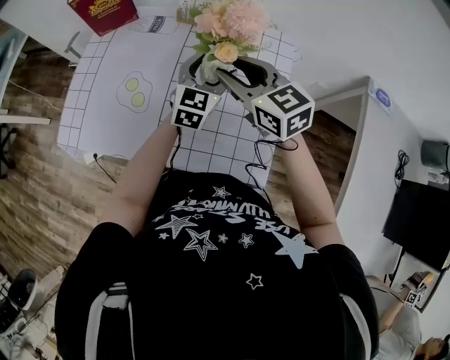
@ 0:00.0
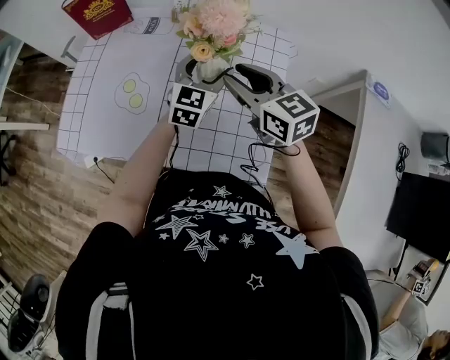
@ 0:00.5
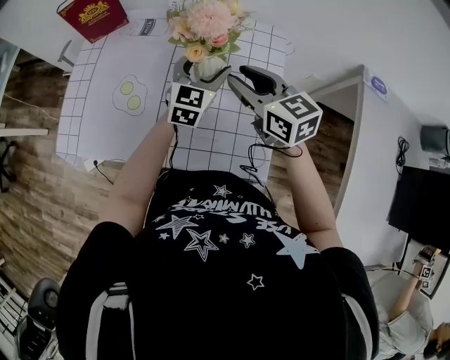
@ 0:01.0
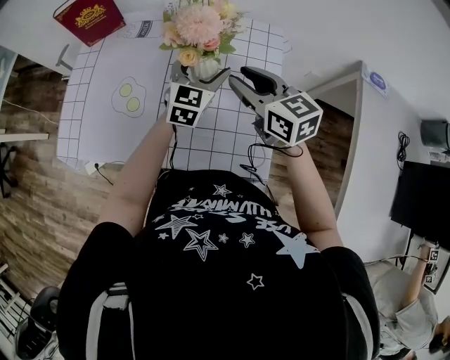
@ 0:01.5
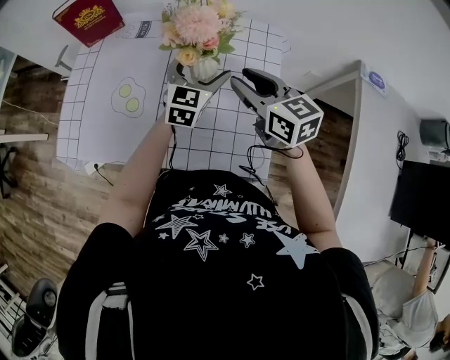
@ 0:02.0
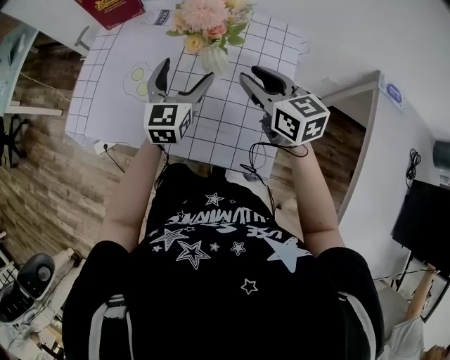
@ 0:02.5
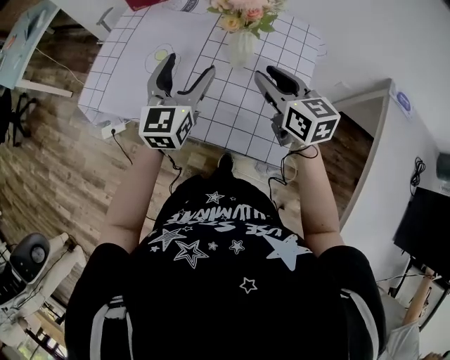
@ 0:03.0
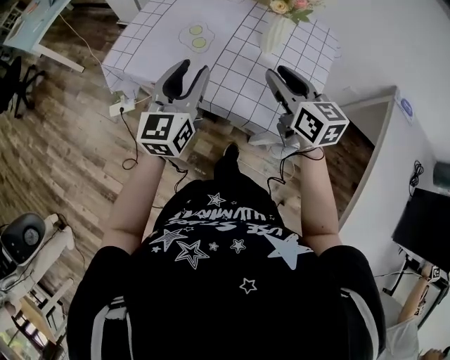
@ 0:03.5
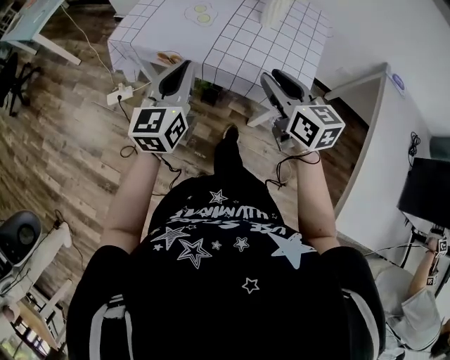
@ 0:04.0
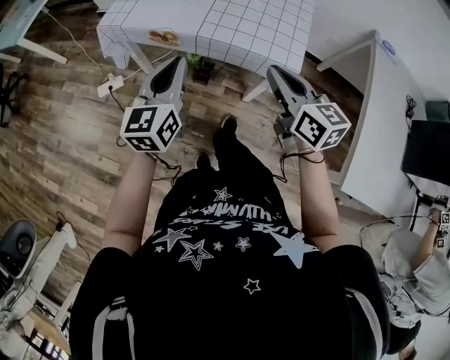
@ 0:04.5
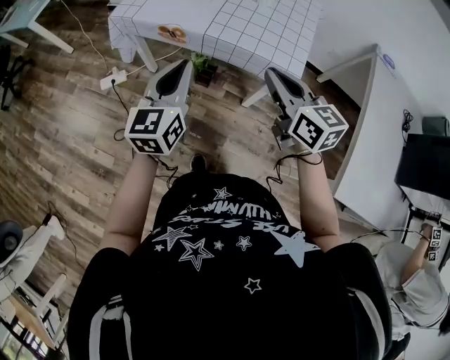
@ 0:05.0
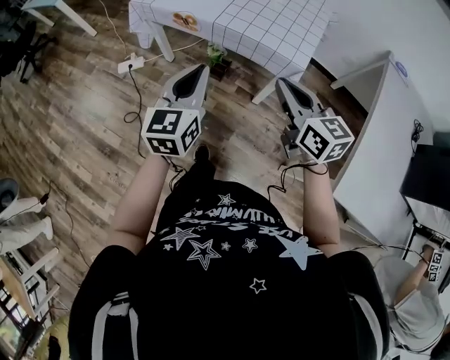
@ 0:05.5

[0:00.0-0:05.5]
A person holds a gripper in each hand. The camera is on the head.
0:00.0 to 0:02.0: The right gripper travels to the right by roughly 5 cm.
0:02.0 to 0:03.5: The left gripper goes about 30 cm to the left and backward, changes its angle by roughly 30 degrees, and closes up. The right gripper is displaced backward and to the left by roughly 15 cm.
0:03.5 to 0:05.5: Both grippers move backward, some 35 cm. The right gripper closes up.

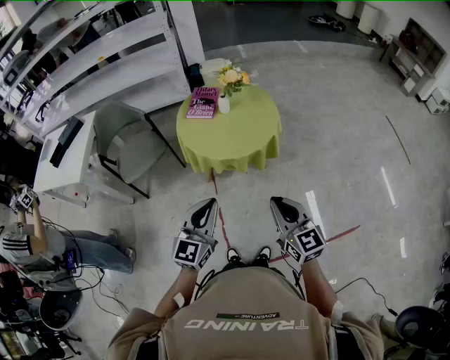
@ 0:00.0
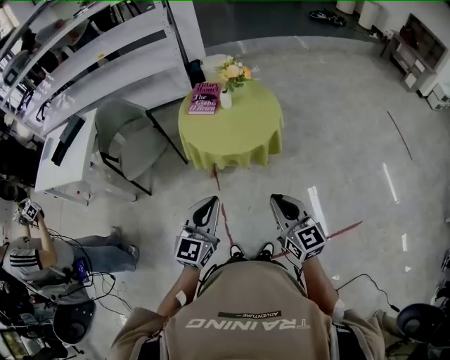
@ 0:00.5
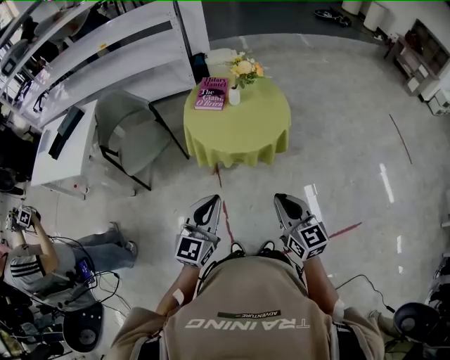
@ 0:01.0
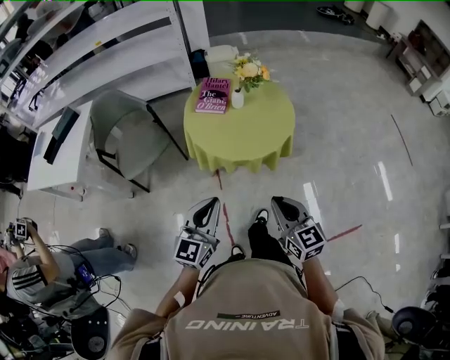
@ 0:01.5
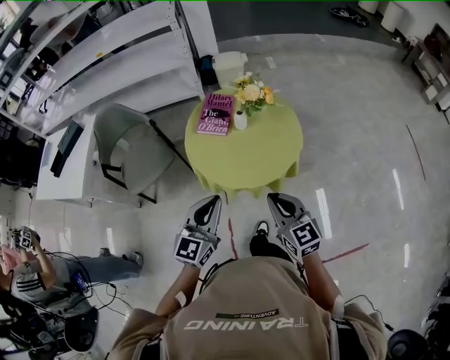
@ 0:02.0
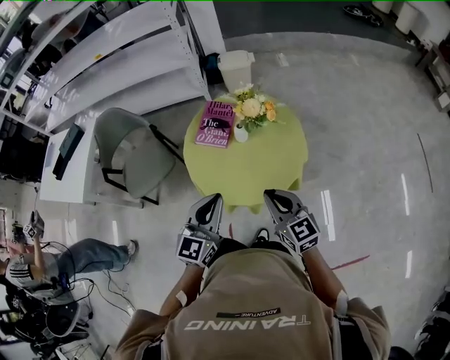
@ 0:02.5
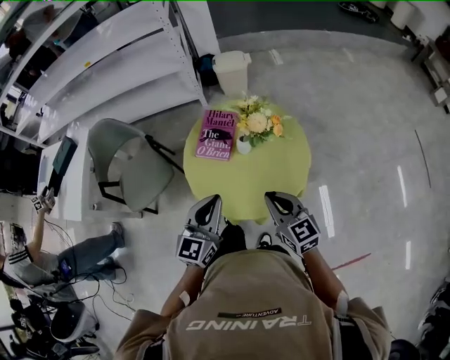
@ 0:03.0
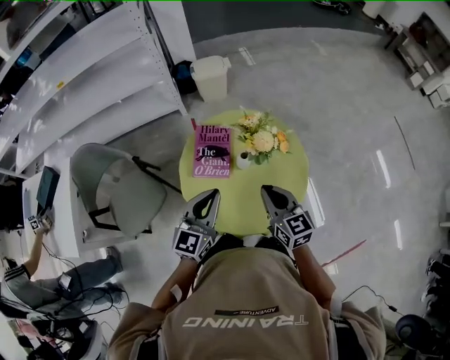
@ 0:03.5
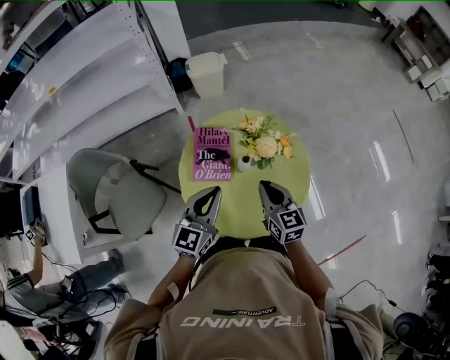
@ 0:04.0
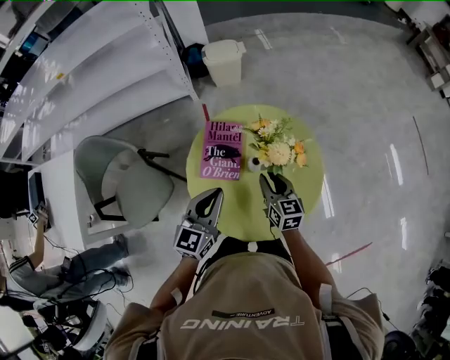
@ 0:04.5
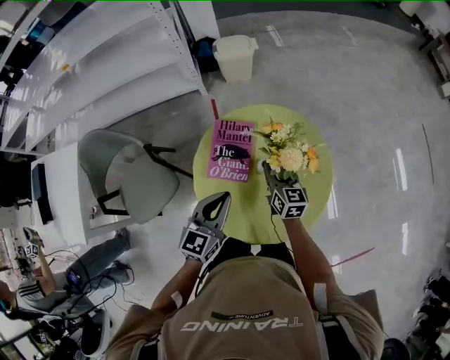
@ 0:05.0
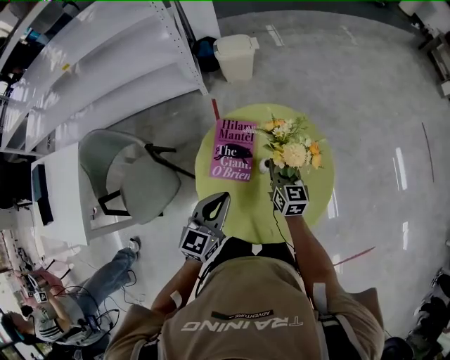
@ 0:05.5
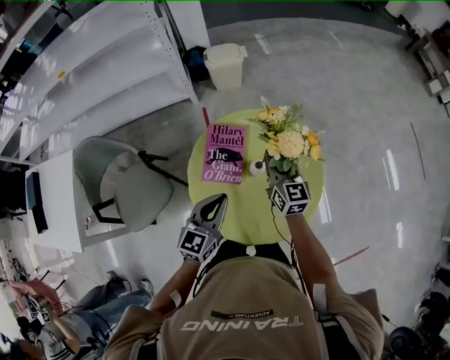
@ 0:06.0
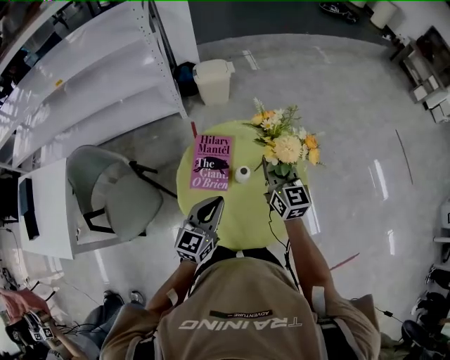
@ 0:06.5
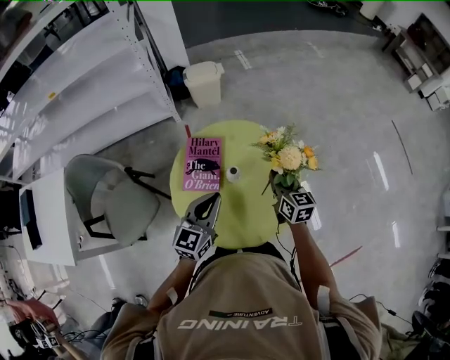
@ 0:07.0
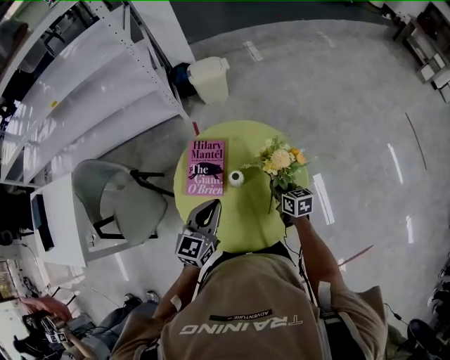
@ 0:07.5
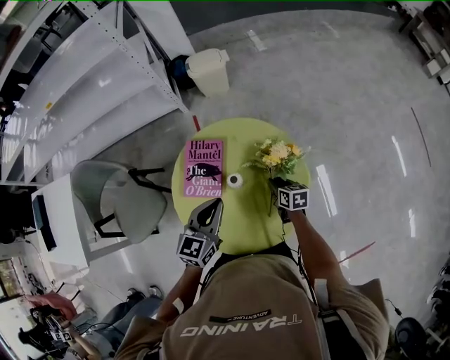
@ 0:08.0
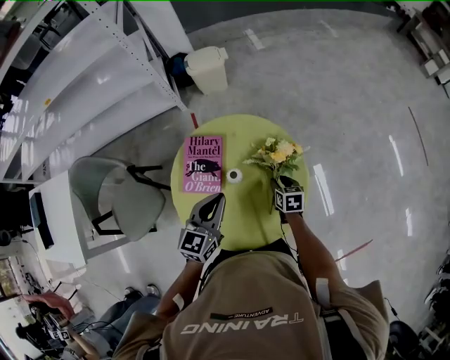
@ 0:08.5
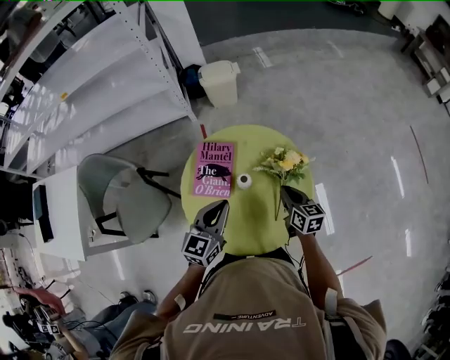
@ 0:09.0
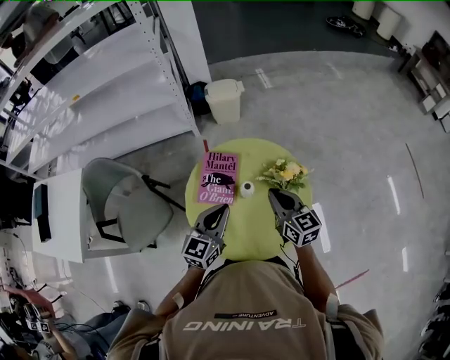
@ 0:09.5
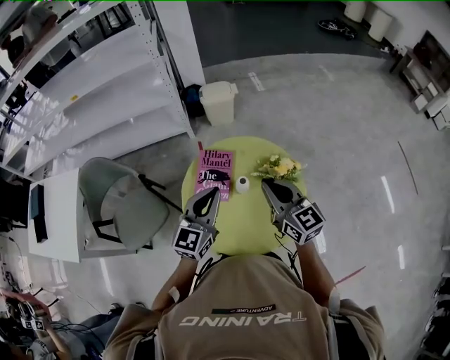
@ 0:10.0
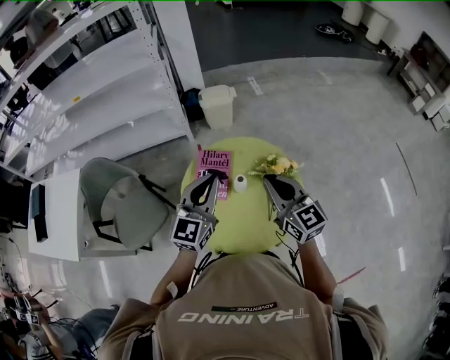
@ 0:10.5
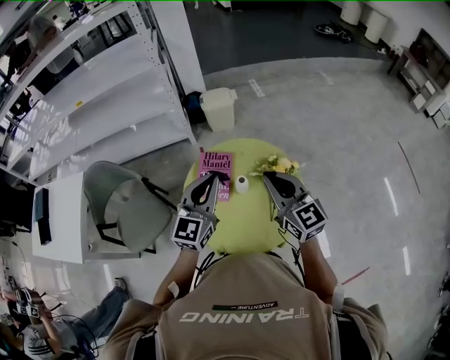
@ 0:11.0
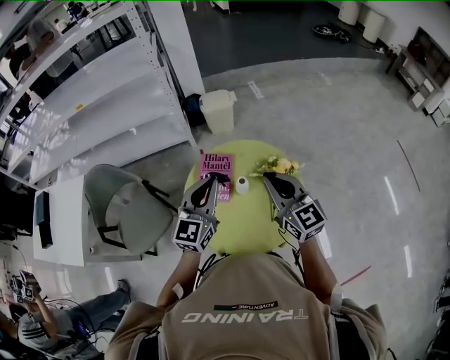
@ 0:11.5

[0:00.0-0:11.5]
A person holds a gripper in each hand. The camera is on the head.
0:00.0 to 0:02.0: The two grippers go roughly 25 cm forward.
0:02.0 to 0:04.0: Both grippers move forward, roughly 30 cm. The right gripper rotates about 20 degrees.
0:04.0 to 0:06.0: The right gripper moves forward, roughly 15 cm, and opens and closes again; the left gripper shifts some 5 cm downward.
0:06.0 to 0:07.5: The left gripper is displaced to the right by roughly 5 cm. Meanwhile the right gripper is displaced downward and to the right by some 20 cm, and swivels some 30 degrees.
0:07.5 to 0:09.5: The right gripper is displaced upward by roughly 20 cm, changes its angle by some 30 degrees, and opens, then closes once more.
0:09.5 to 0:11.5: Both grippers move upward, approximately 15 cm.

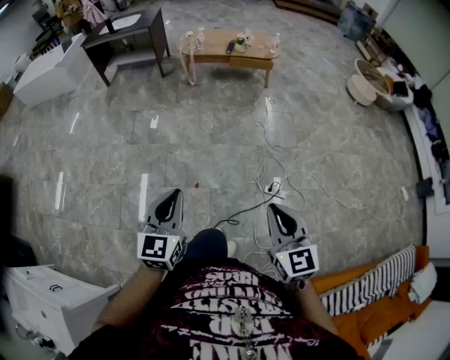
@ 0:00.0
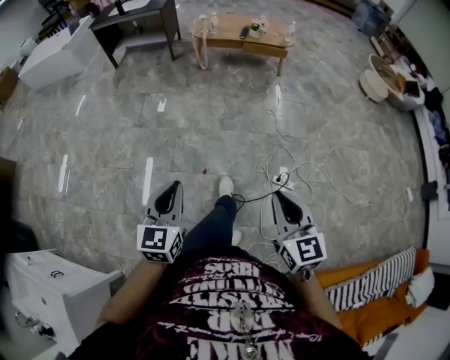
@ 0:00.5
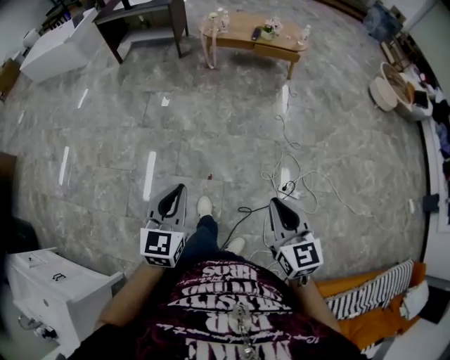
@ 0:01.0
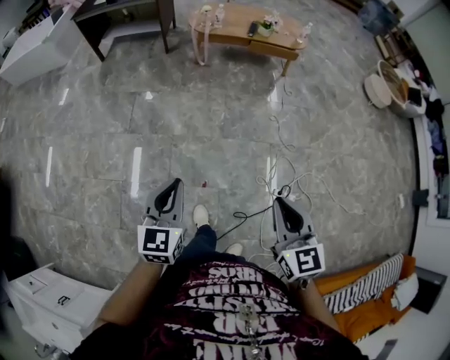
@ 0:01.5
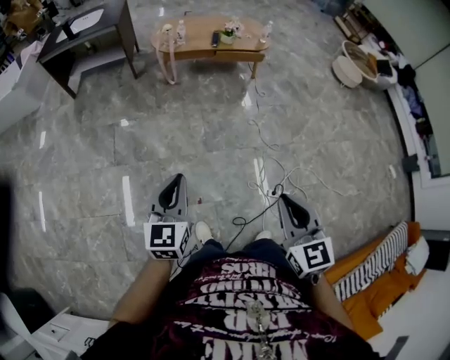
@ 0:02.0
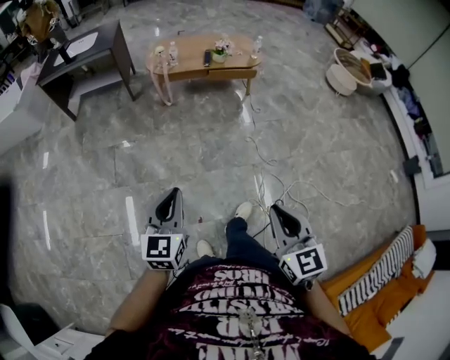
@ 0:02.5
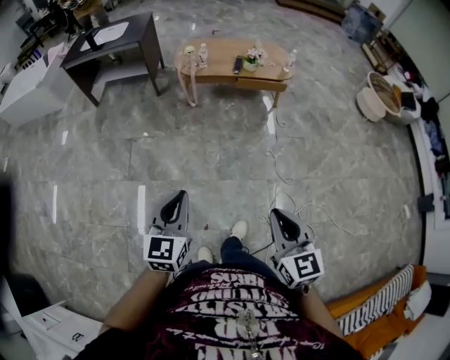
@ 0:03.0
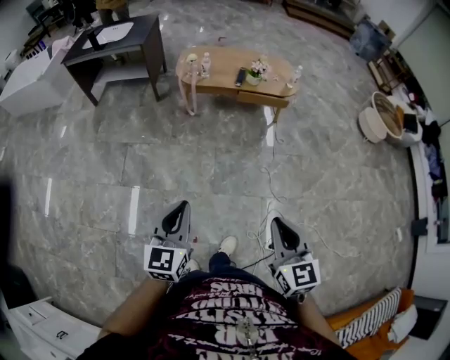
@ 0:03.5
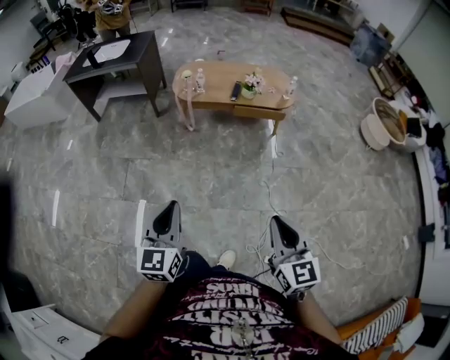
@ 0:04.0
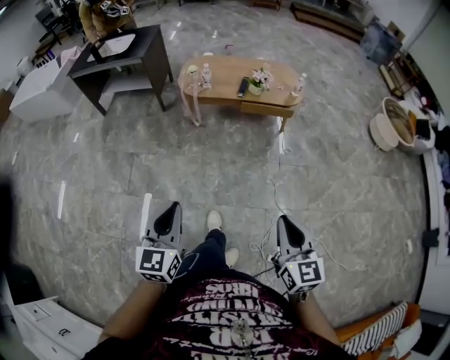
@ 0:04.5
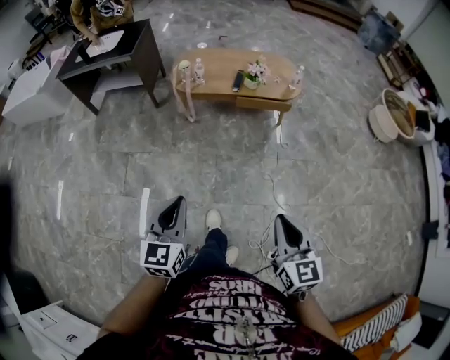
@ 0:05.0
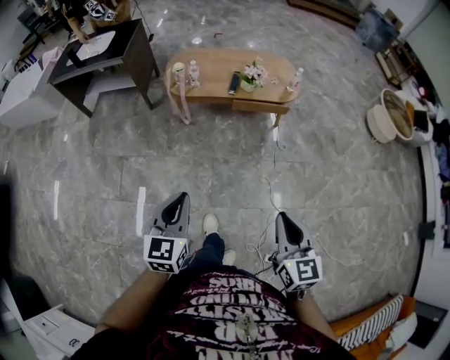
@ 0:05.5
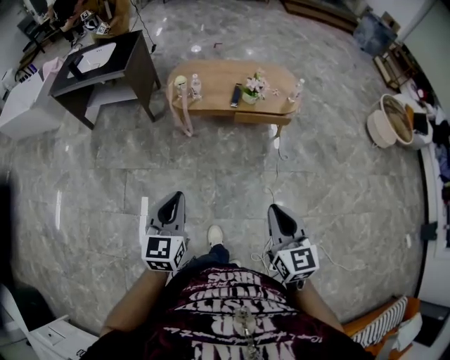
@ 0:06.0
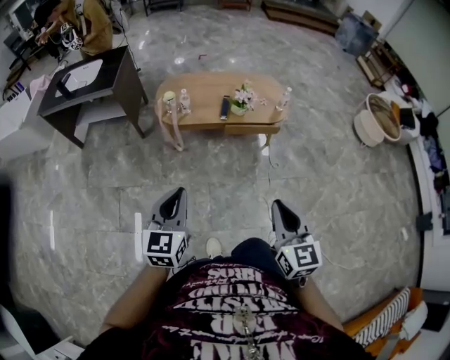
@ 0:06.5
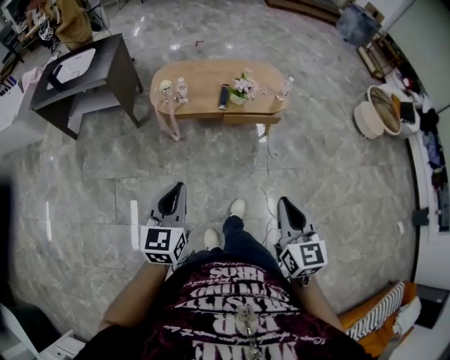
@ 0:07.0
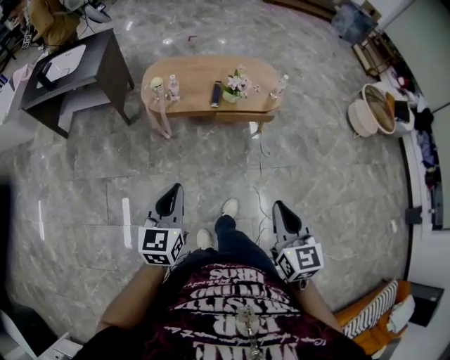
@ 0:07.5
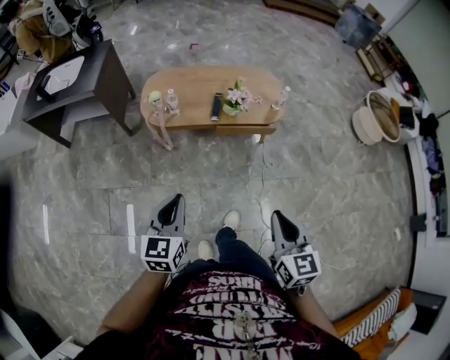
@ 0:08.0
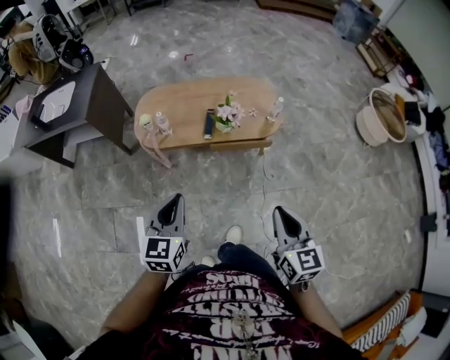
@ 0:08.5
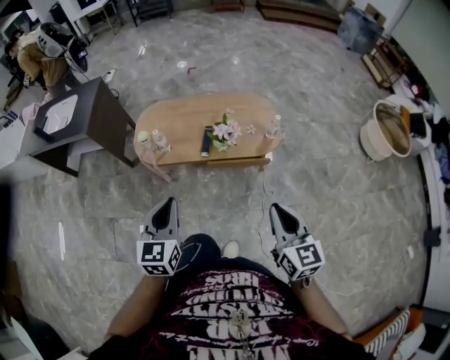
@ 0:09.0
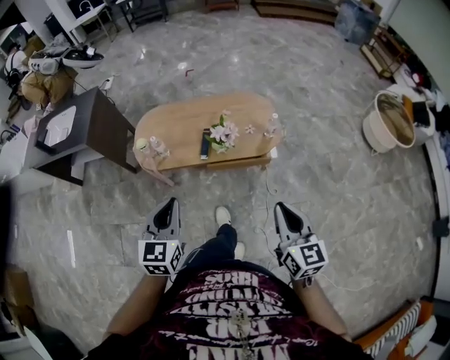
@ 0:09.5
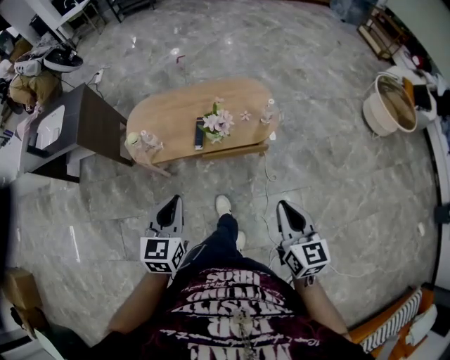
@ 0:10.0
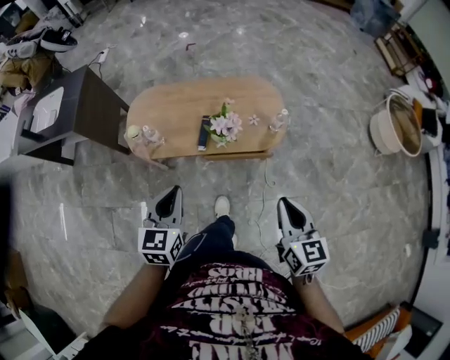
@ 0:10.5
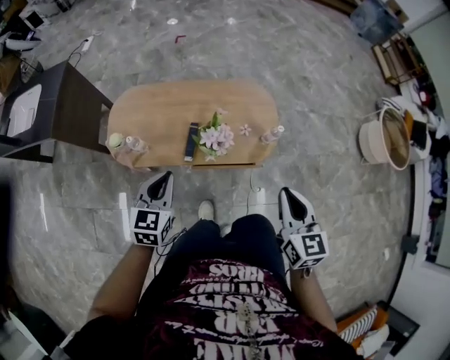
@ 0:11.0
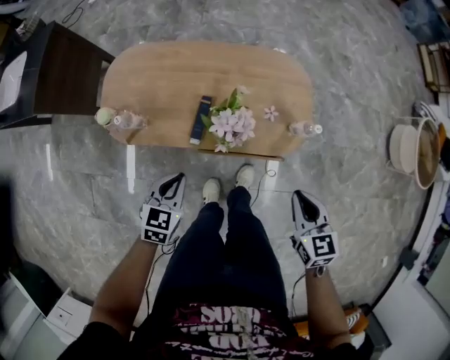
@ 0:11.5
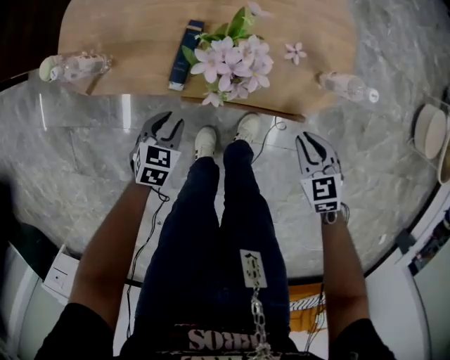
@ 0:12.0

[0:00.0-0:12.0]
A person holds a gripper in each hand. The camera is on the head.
0:00.0 to 0:02.0: The left gripper travels forward by roughly 30 cm. The right gripper travels forward and to the left by approximately 30 cm.
0:02.0 to 0:04.0: The two grippers go some 25 cm forward and to the right.
0:04.0 to 0:06.0: The grippers both shift forward by some 20 cm.
0:06.0 to 0:08.0: Both grippers move forward, some 15 cm.
0:08.0 to 0:10.0: Both grippers travel together forward and to the right, roughly 25 cm.
0:10.0 to 0:12.0: Both grippers travel together downward and forward, roughly 50 cm. The right gripper tips its fingers downward by some 40 degrees, while the left gripper angles its fingers downward, by approximately 40 degrees, and opens up.
